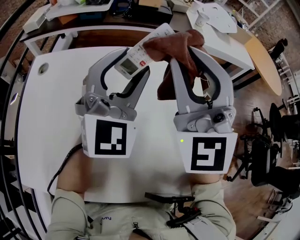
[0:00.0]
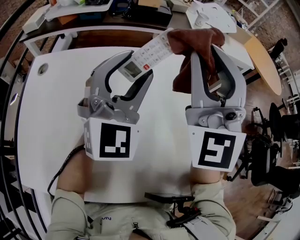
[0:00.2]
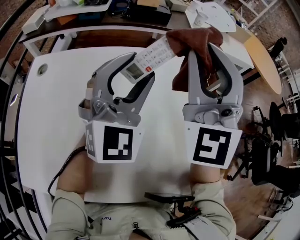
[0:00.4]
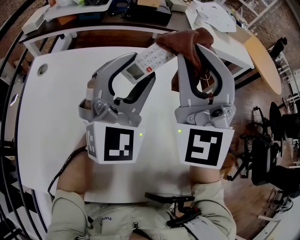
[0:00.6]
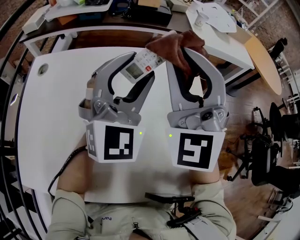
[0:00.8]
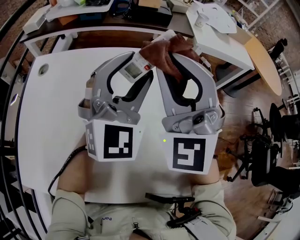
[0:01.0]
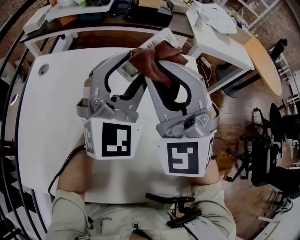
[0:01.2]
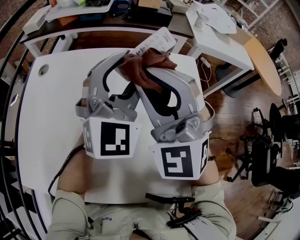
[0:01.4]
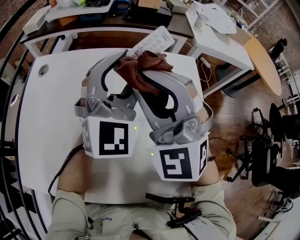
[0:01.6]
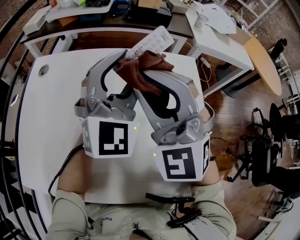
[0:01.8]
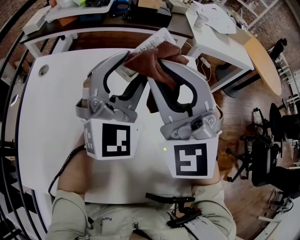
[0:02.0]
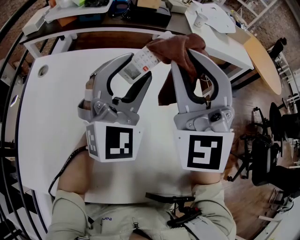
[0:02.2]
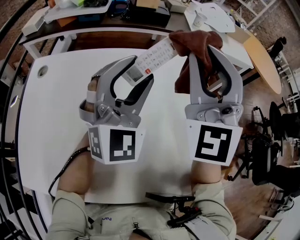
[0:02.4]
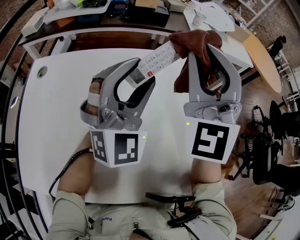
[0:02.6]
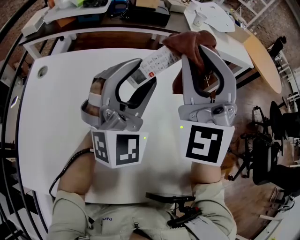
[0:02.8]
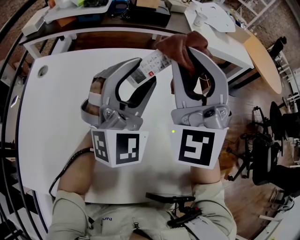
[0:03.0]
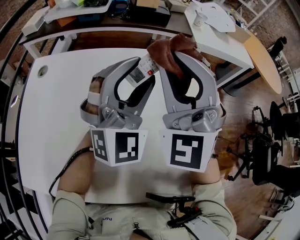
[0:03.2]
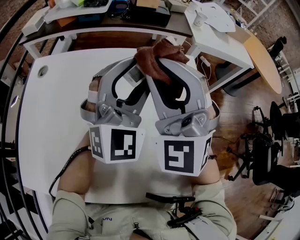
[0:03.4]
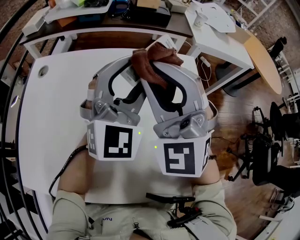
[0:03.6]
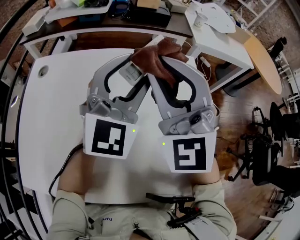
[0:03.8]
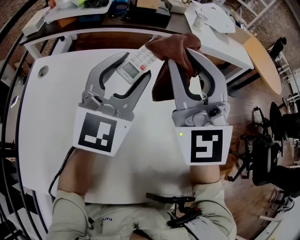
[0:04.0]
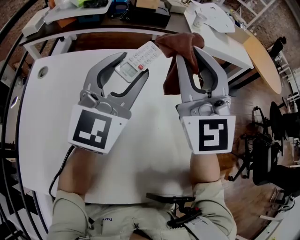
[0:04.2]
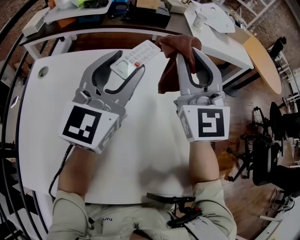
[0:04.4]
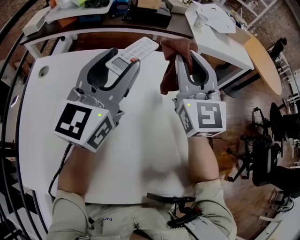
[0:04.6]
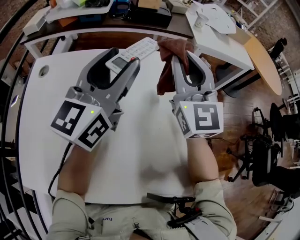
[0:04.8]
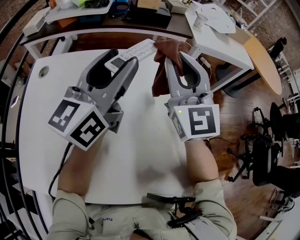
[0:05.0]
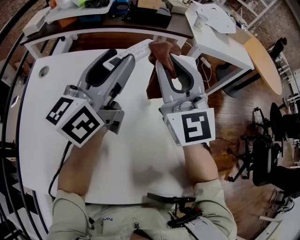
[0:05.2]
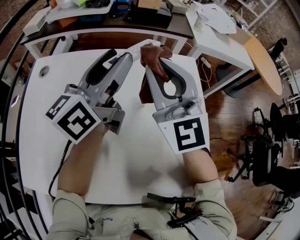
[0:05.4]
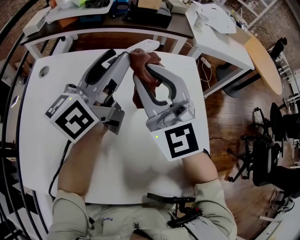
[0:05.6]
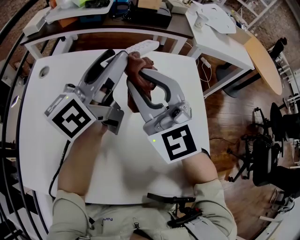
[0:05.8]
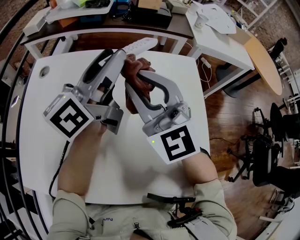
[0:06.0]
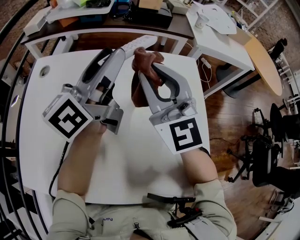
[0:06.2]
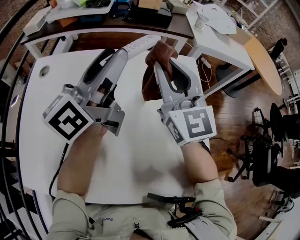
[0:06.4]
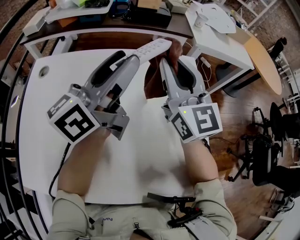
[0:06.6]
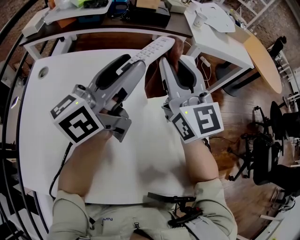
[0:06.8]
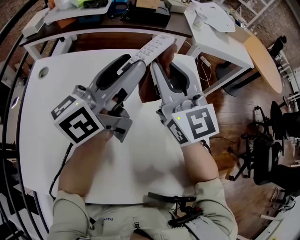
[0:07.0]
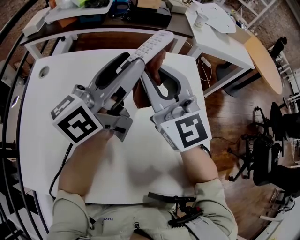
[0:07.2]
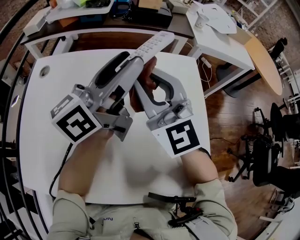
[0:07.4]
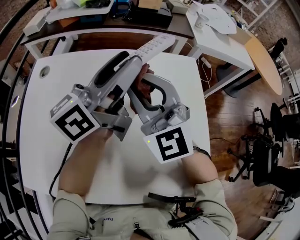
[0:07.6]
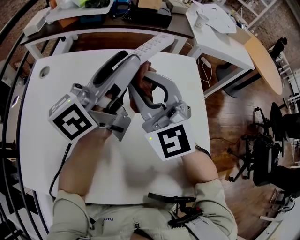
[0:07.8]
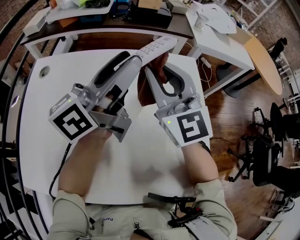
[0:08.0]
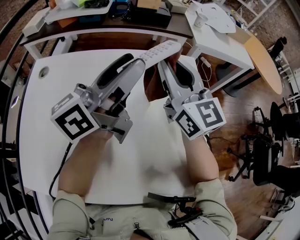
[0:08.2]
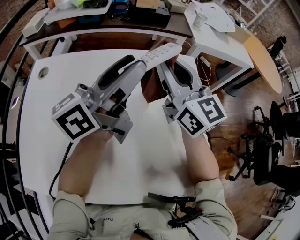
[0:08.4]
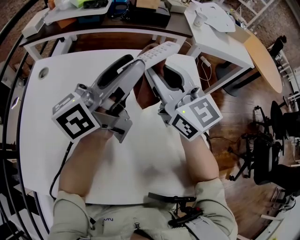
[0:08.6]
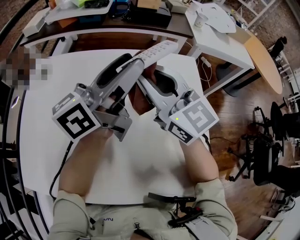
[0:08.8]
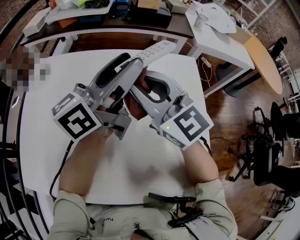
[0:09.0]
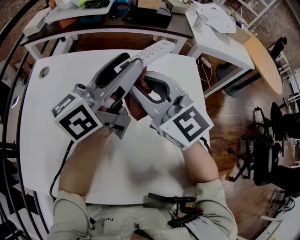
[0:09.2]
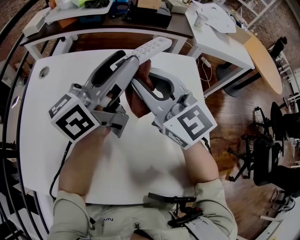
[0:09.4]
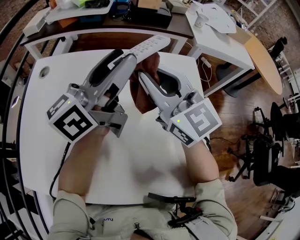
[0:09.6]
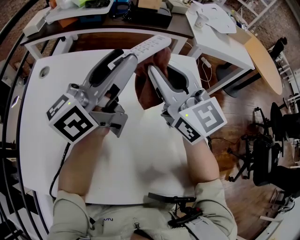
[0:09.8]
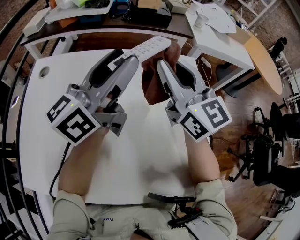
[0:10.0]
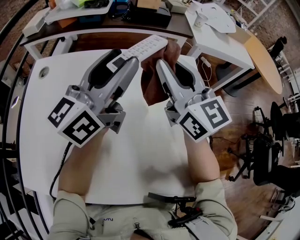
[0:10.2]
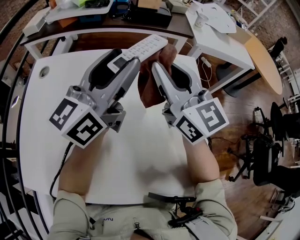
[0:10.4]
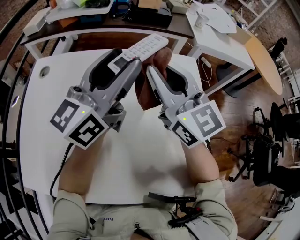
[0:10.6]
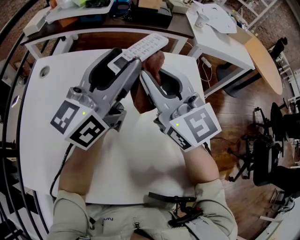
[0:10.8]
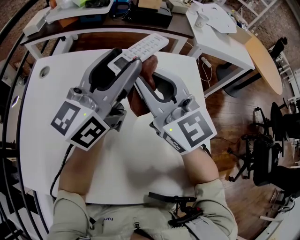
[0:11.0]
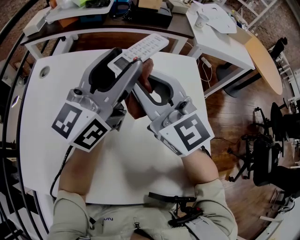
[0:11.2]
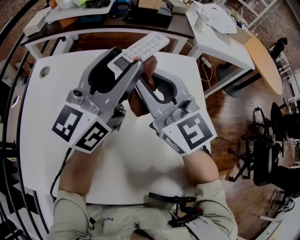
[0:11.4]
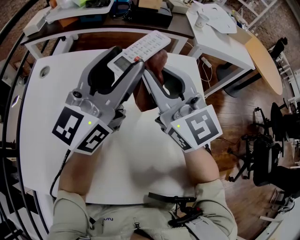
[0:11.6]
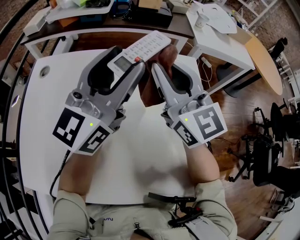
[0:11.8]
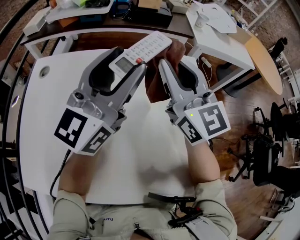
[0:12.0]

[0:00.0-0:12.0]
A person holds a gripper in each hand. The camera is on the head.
0:00.0 to 0:01.6: The right gripper is displaced to the left and downward by some 10 cm, and changes its angle by roughly 20 degrees.
0:01.6 to 0:03.0: The right gripper shifts some 10 cm to the right, and swivels roughly 20 degrees.
0:03.0 to 0:04.4: The left gripper changes place by about 5 cm, and twists roughly 40 degrees counterclockwise, seen from behind; the right gripper moves some 5 cm, and changes its angle by approximately 30 degrees.
0:04.4 to 0:06.0: The right gripper moves to the left, backward and downward, roughly 15 cm, and changes its angle by approximately 20 degrees; the left gripper moves to the left, roughly 5 cm, and rolls counterclockwise, seen from behind, by about 40 degrees.
0:06.0 to 0:07.6: The right gripper moves roughly 10 cm to the right and comes back.
0:07.6 to 0:09.0: The right gripper goes to the right and returns, approximately 10 cm each way, and rotates roughly 30 degrees.
0:09.0 to 0:10.4: The right gripper moves to the right, roughly 5 cm.

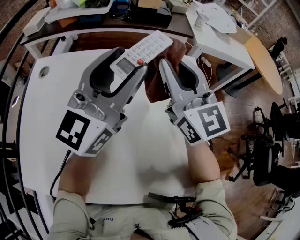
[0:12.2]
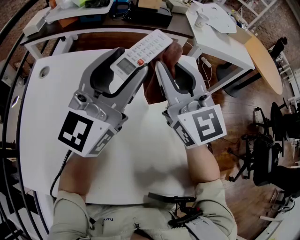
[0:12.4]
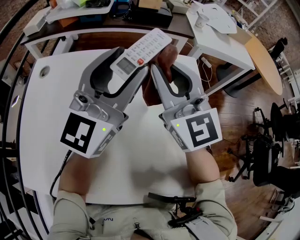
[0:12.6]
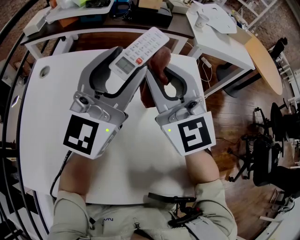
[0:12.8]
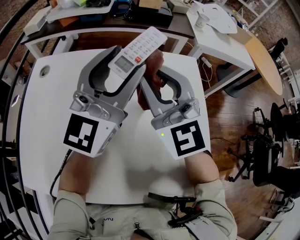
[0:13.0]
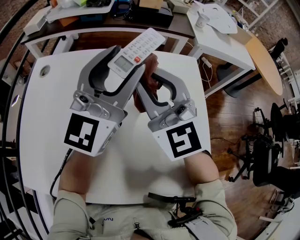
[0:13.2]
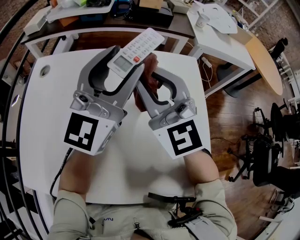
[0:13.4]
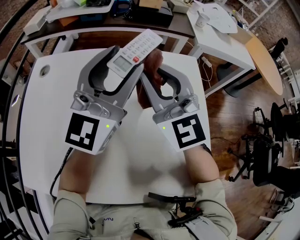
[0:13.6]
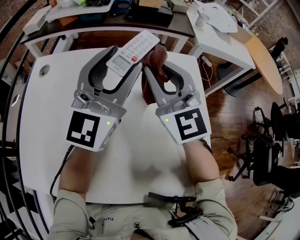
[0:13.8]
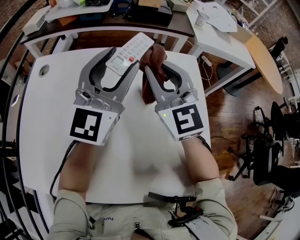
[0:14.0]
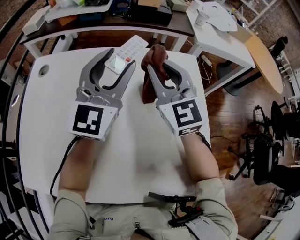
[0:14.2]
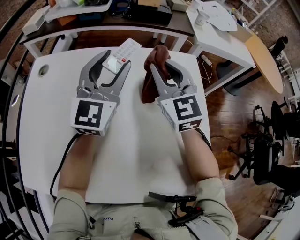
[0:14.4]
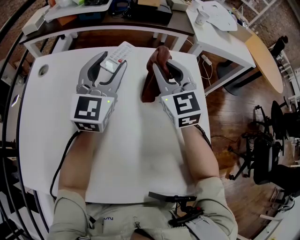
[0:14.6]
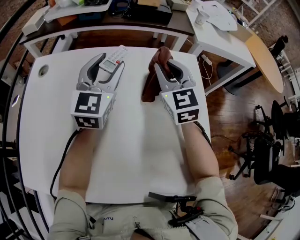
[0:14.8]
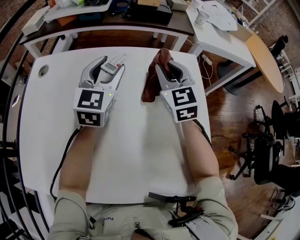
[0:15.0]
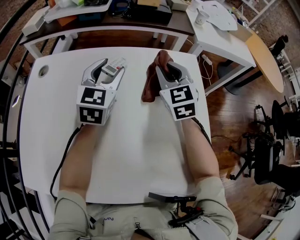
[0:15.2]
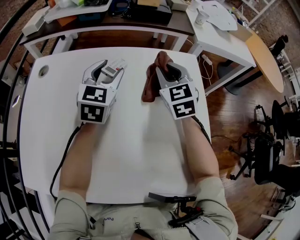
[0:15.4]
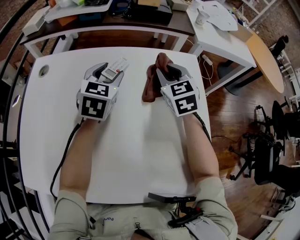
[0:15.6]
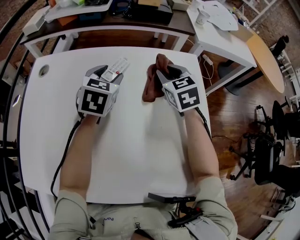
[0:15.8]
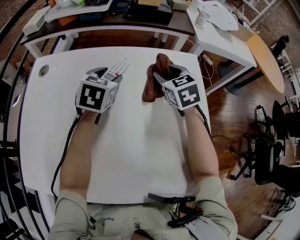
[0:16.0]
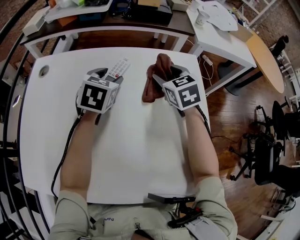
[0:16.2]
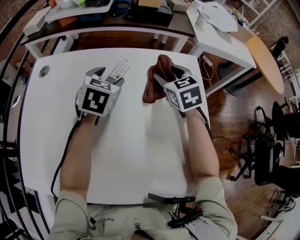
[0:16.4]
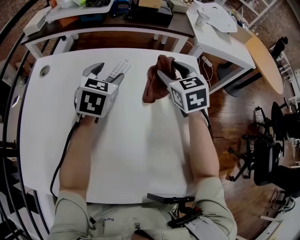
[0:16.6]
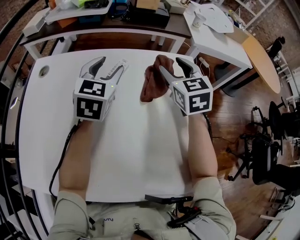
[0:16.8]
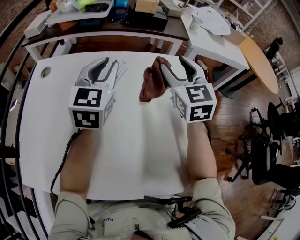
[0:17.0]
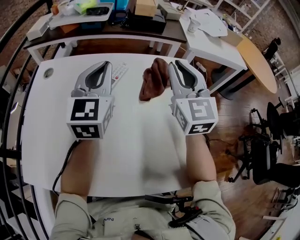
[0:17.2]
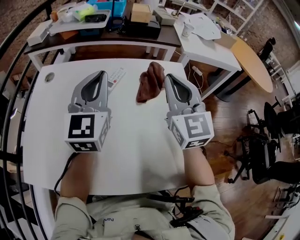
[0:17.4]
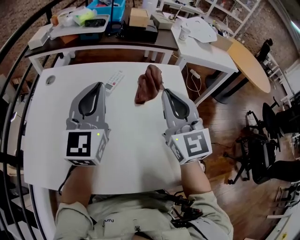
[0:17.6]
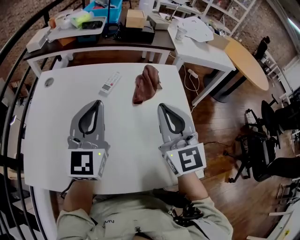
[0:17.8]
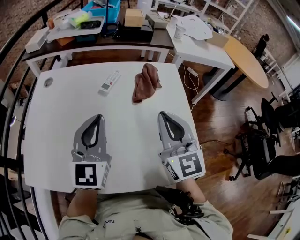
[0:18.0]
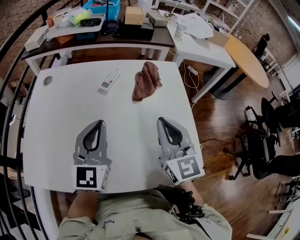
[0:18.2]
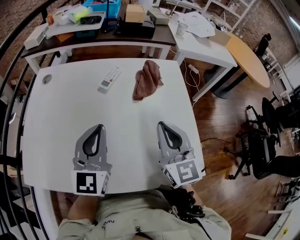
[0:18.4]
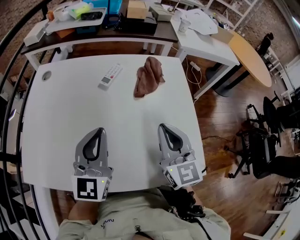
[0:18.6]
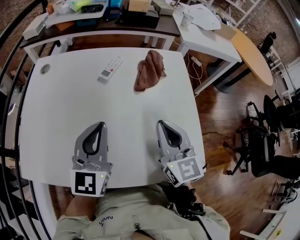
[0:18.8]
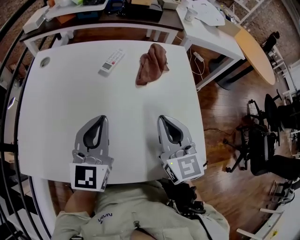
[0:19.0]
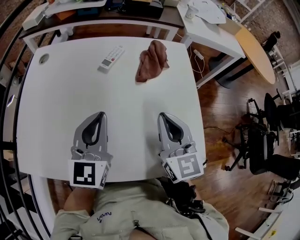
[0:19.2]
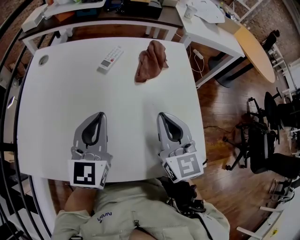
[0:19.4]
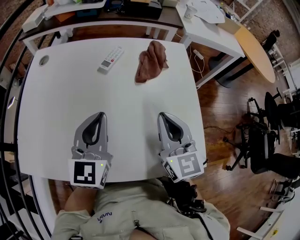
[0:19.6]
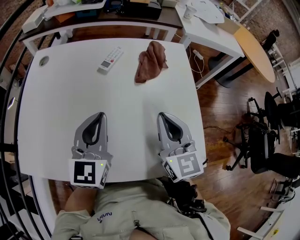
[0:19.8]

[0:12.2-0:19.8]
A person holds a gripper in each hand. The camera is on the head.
0:13.8 to 0:15.2: The left gripper travels downward and forward by roughly 15 cm, and rotates about 30 degrees; the right gripper is displaced downward, forward and to the right by about 15 cm, and swivels approximately 20 degrees.
0:15.2 to 0:16.8: The left gripper moves approximately 5 cm downward and comes back; the right gripper opens its fingers.
0:16.8 to 0:18.2: Both grippers travel together backward, approximately 25 cm. The right gripper rotates roughly 20 degrees, and closes its fingers, while the left gripper turns by approximately 20 degrees, and closes up.
0:18.2 to 0:19.8: The grippers make only small movements.

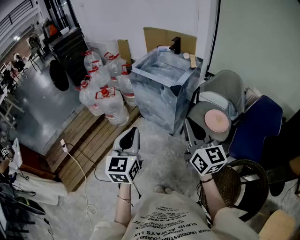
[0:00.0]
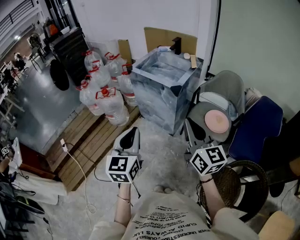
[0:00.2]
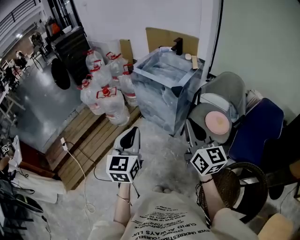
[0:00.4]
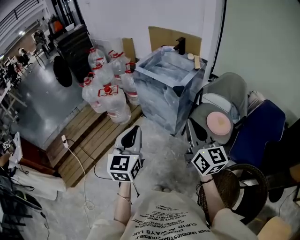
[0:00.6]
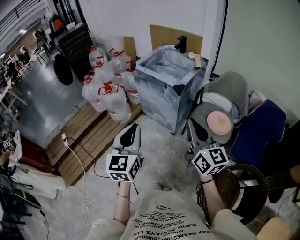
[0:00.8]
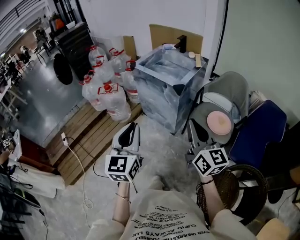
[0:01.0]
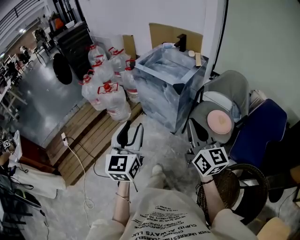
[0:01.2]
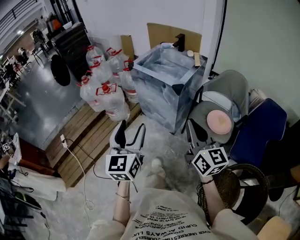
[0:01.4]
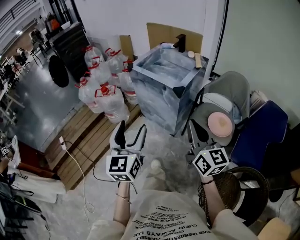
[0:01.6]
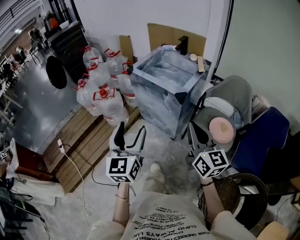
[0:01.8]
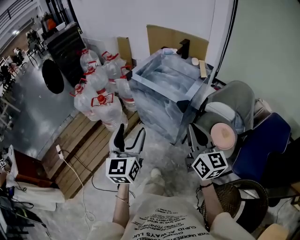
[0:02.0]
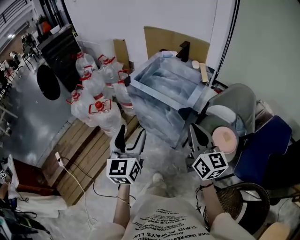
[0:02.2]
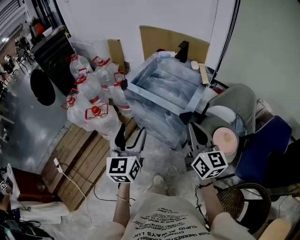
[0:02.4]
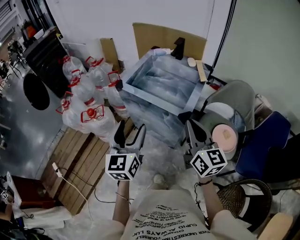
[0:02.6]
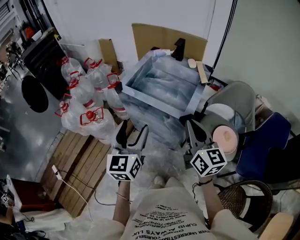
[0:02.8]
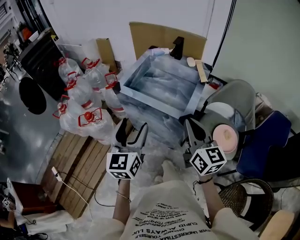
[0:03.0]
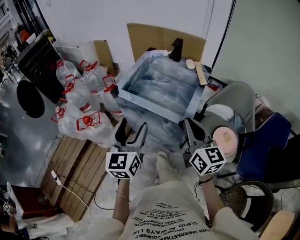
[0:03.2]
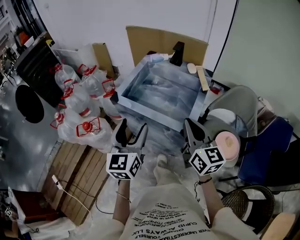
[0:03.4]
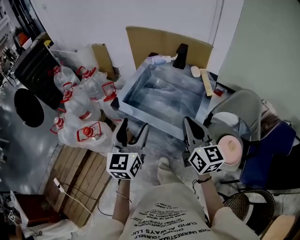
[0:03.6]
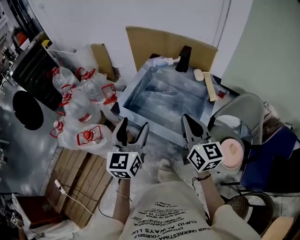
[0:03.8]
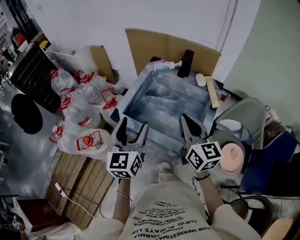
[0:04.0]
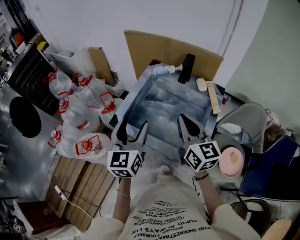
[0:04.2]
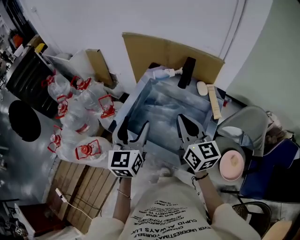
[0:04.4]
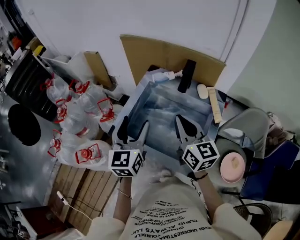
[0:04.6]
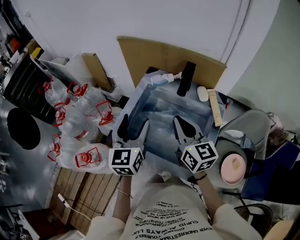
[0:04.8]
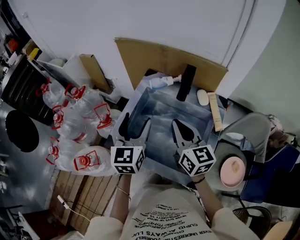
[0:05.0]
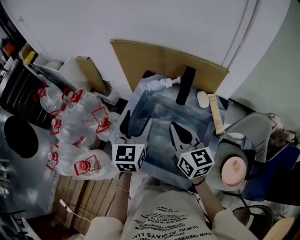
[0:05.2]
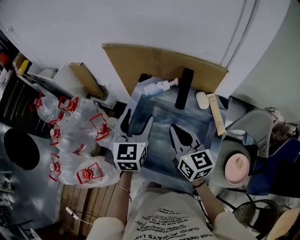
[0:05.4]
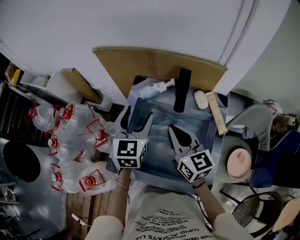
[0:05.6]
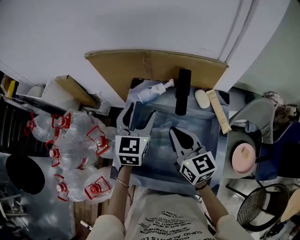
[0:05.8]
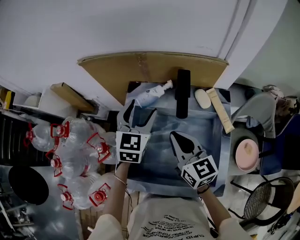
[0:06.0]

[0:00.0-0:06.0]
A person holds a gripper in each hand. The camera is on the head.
0:00.0 to 0:01.6: The two grippers go some 5 cm forward. The left gripper opens.
0:01.6 to 0:03.0: Both grippers move forward, some 30 cm.
0:03.0 to 0:04.4: Both grippers travel together forward, some 25 cm.
0:04.4 to 0:06.0: The left gripper shifts approximately 25 cm forward, and turns by some 30 degrees; the right gripper is displaced forward and downward by approximately 15 cm.
